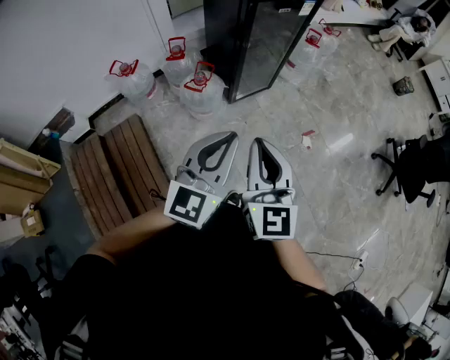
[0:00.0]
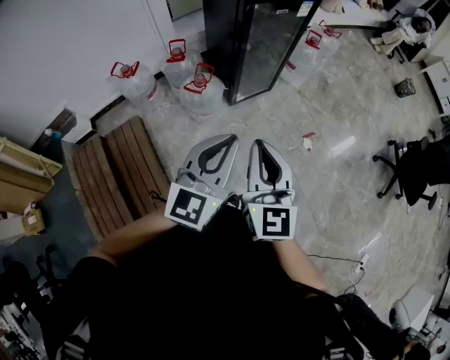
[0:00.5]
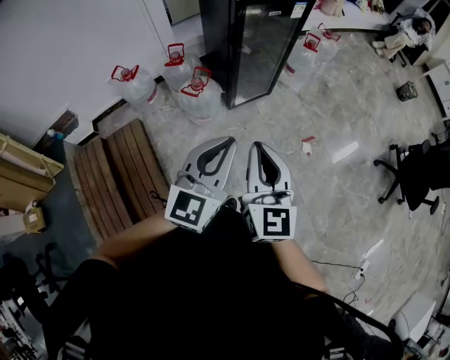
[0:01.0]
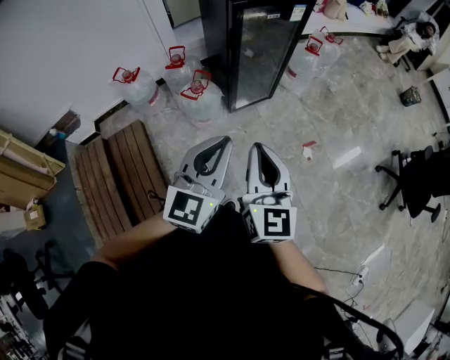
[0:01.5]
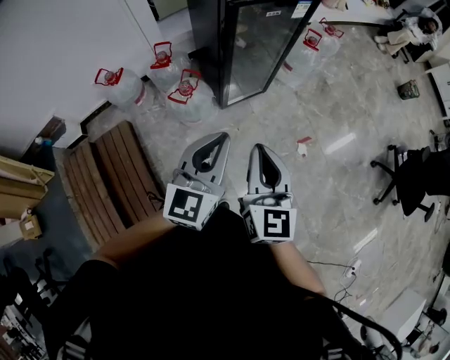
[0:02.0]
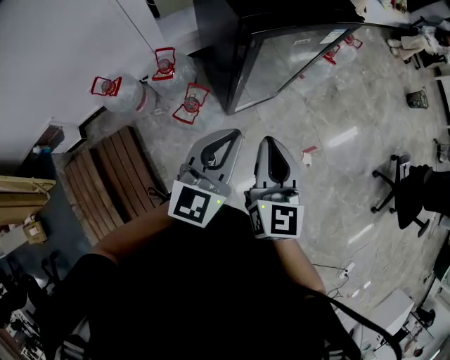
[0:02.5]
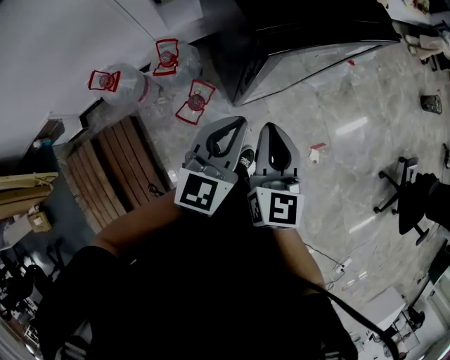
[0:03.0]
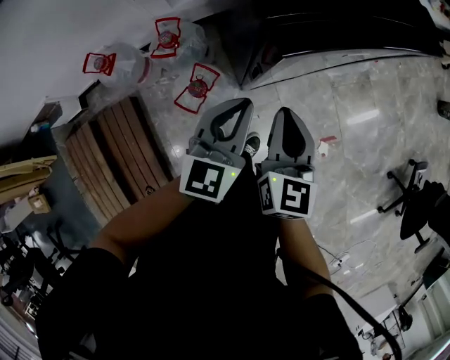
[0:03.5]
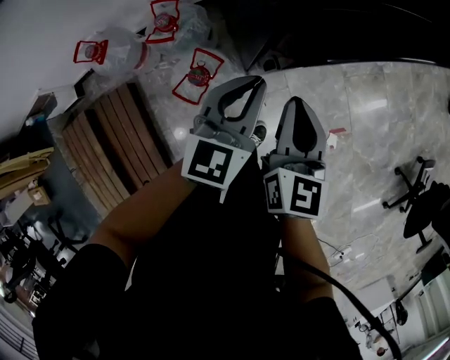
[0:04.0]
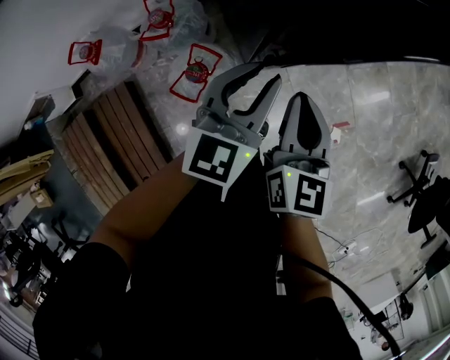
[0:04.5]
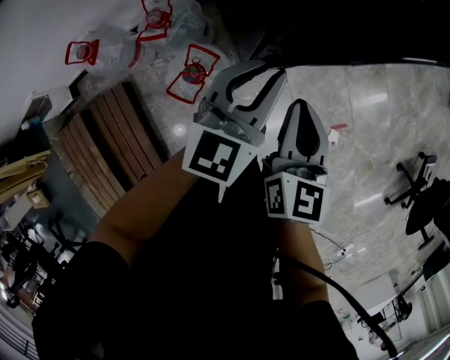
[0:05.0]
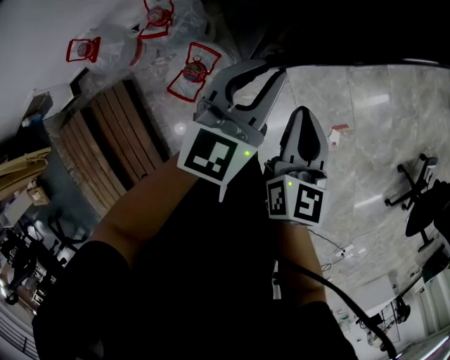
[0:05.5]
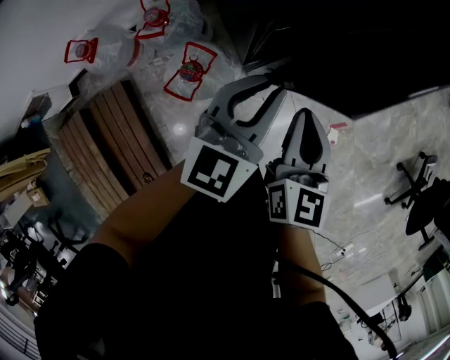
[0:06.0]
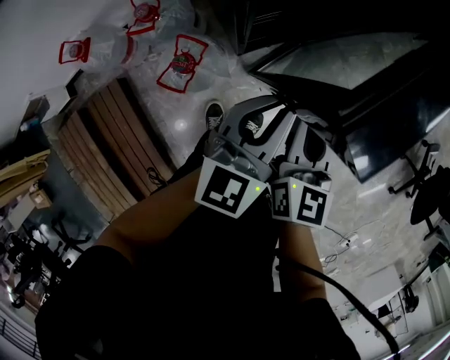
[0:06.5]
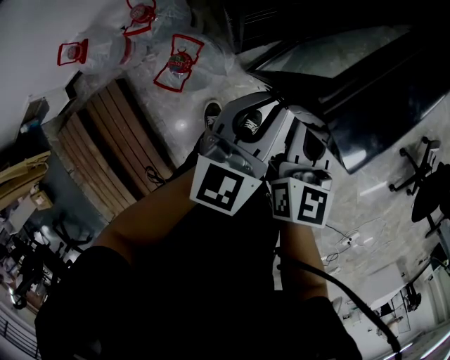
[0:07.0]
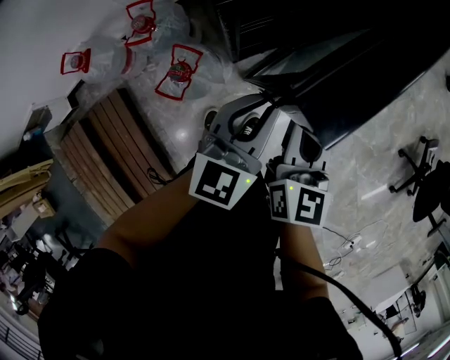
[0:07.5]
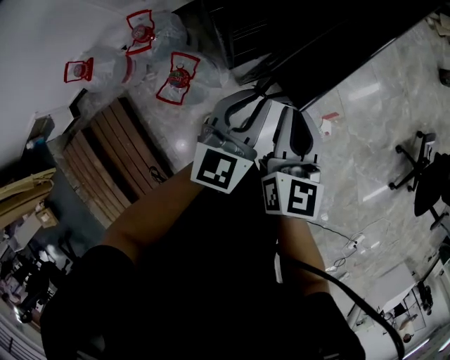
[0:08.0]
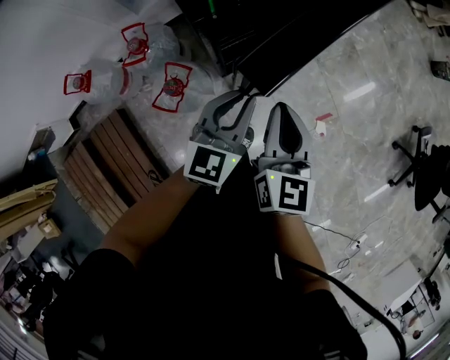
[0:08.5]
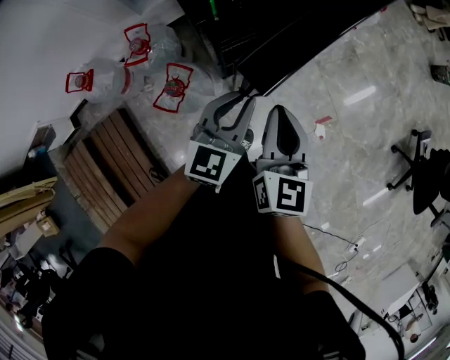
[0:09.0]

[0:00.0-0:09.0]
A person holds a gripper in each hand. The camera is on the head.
0:00.0 to 0:02.0: The left gripper heads forward, covering about 15 cm; the right gripper heads forward and to the right, covering roughly 15 cm.
0:02.0 to 0:04.5: The grippers both shift forward and downward by some 40 cm. The left gripper opens.
0:04.5 to 0:07.0: The left gripper travels to the right and backward by about 10 cm; the right gripper moves to the right, about 10 cm.
0:07.0 to 0:09.0: The right gripper heads upward, covering approximately 5 cm.

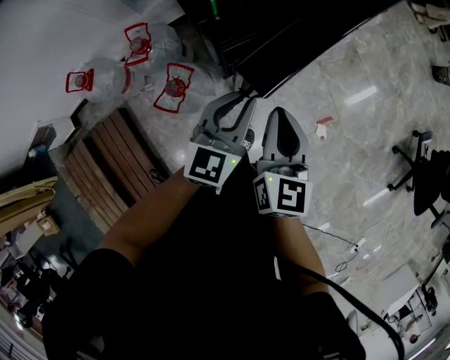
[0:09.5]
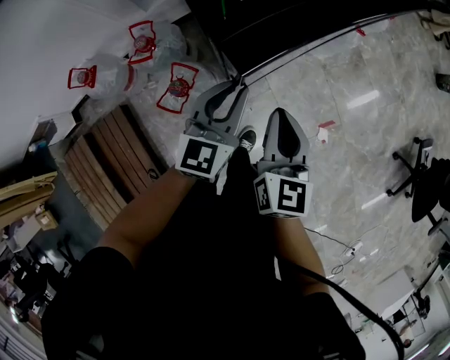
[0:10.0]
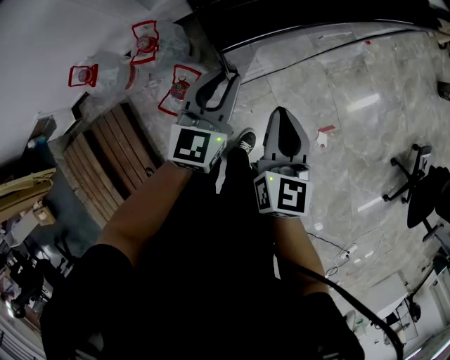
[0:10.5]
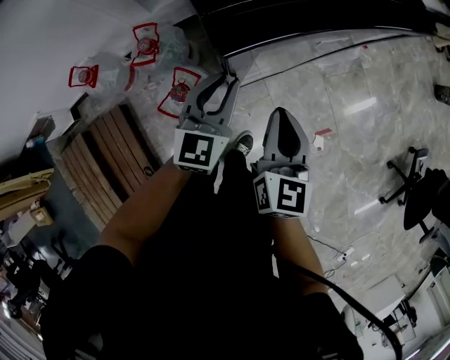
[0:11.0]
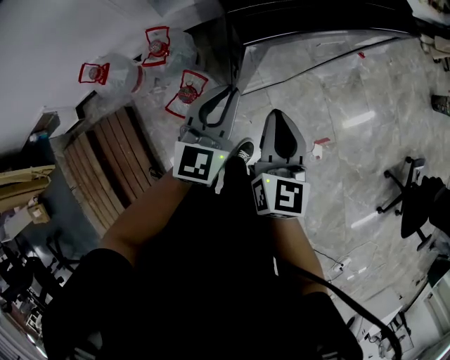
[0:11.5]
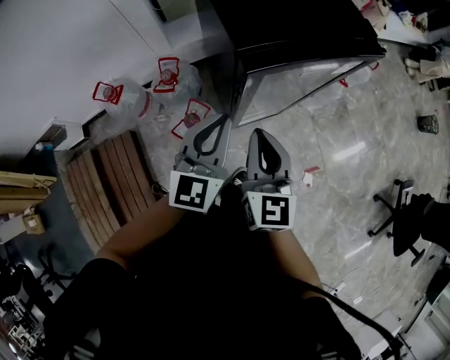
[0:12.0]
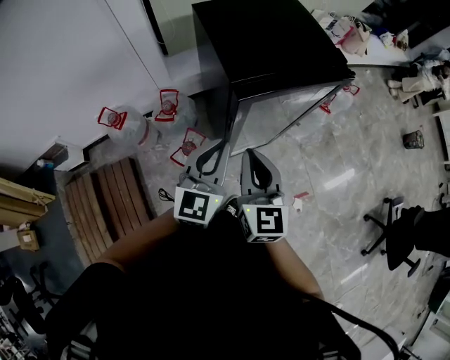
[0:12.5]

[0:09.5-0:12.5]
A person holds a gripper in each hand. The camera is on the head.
0:09.5 to 0:11.0: The left gripper is displaced to the left and forward by roughly 10 cm; the right gripper changes place by about 5 cm.
0:11.0 to 0:12.5: The two grippers go roughly 20 cm upward and backward.

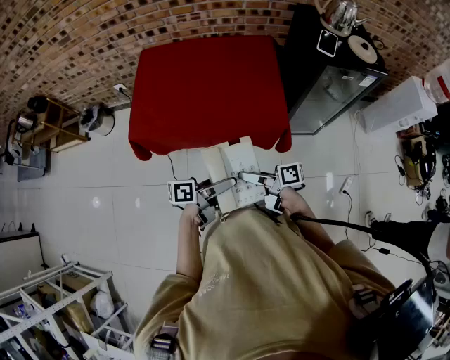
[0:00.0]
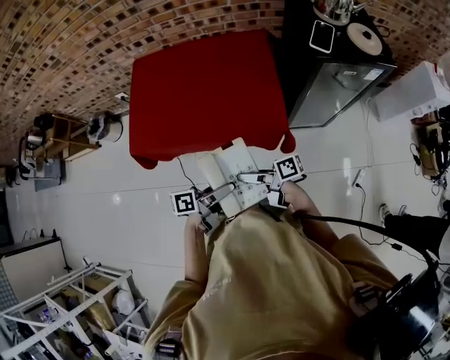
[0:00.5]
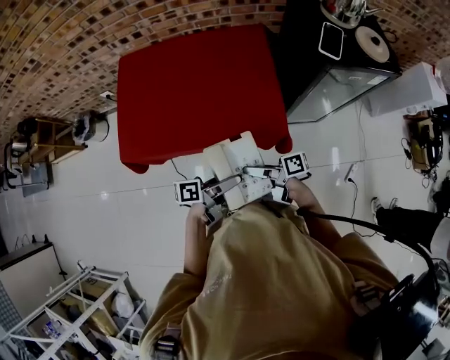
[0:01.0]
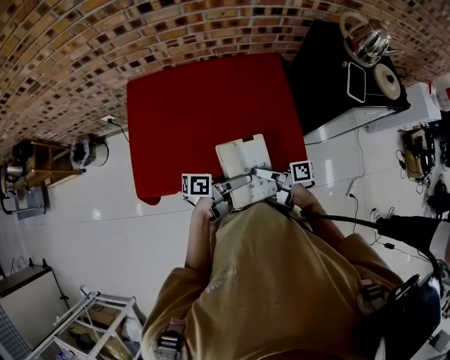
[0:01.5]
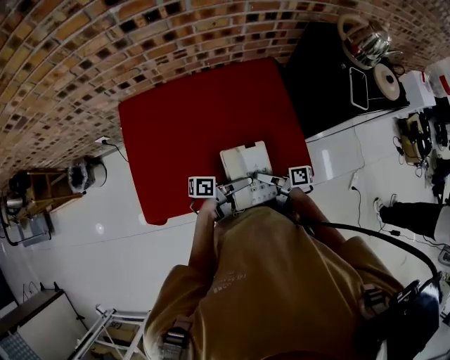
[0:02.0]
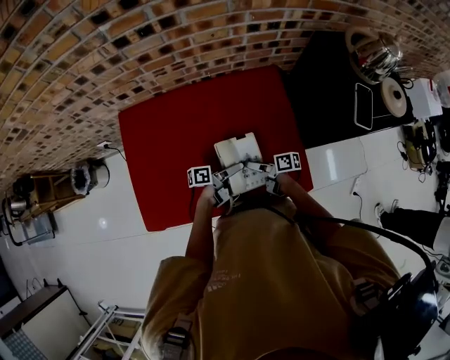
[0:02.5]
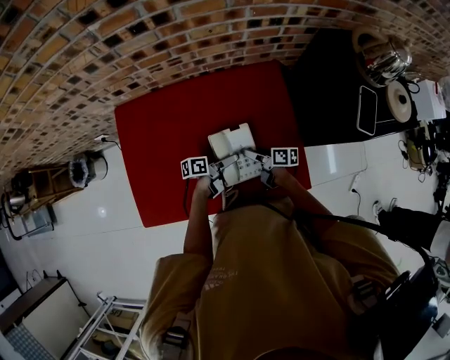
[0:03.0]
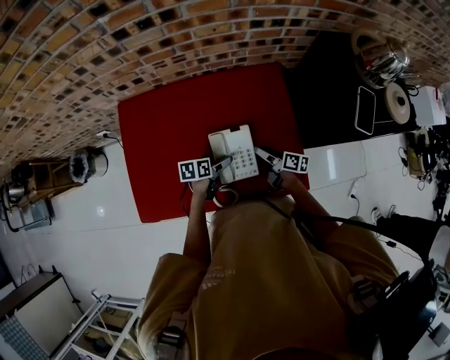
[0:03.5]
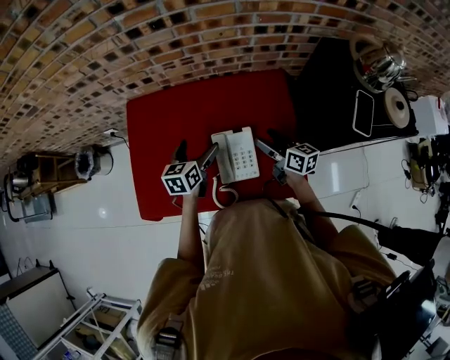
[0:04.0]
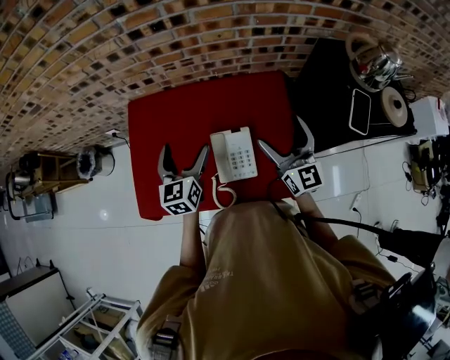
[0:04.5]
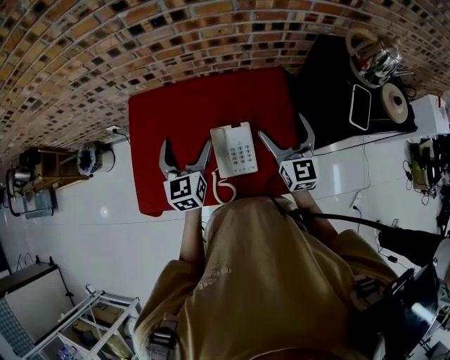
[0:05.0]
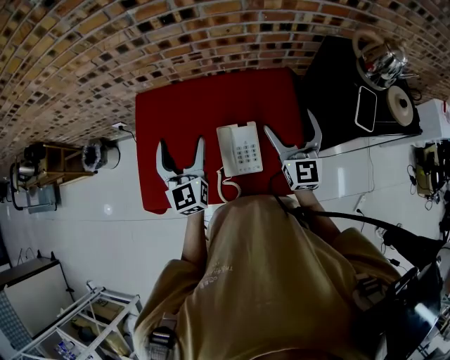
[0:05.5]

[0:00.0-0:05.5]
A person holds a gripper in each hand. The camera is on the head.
0:00.0 to 0:02.0: The left gripper moves up and down over approximately 10 cm, changing direction 2 times, and turns by roughly 30 degrees; the right gripper ends up roughly 35 cm from where it was.
0:02.0 to 0:03.5: The right gripper moves roughly 20 cm, and turns by roughly 20 degrees. Meanwhile the left gripper changes place by some 20 cm, and points its fingers about 40 degrees further downward.
0:03.5 to 0:05.5: The grippers both shift upward by some 40 cm. The left gripper tilts its fingers some 40 degrees upward, while the right gripper twists roughly 80 degrees counterclockwise, seen from behind.

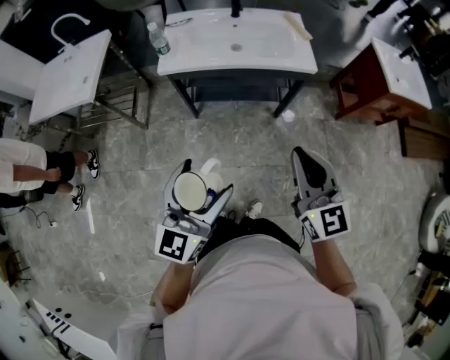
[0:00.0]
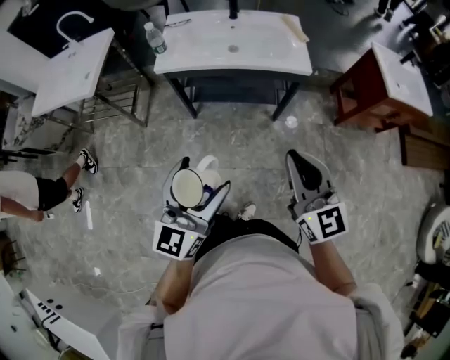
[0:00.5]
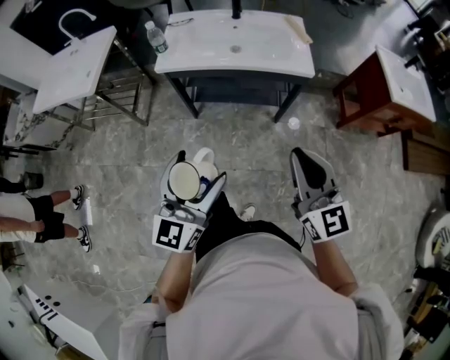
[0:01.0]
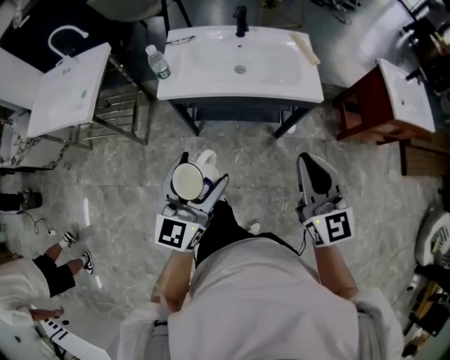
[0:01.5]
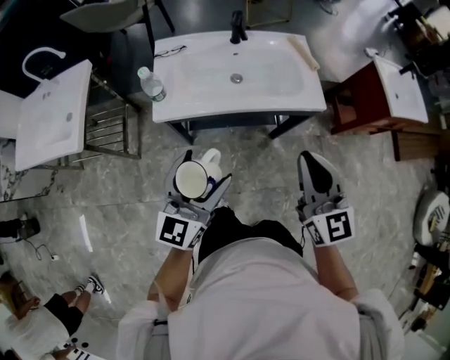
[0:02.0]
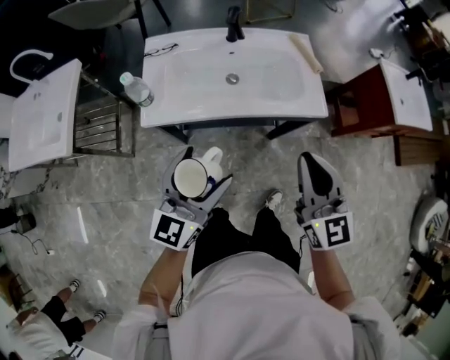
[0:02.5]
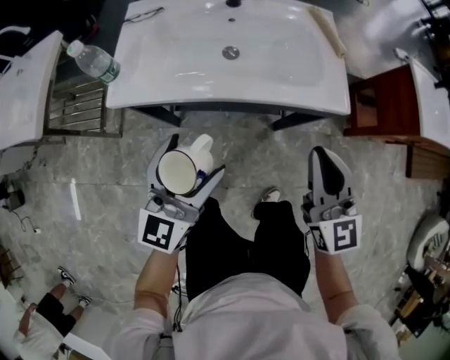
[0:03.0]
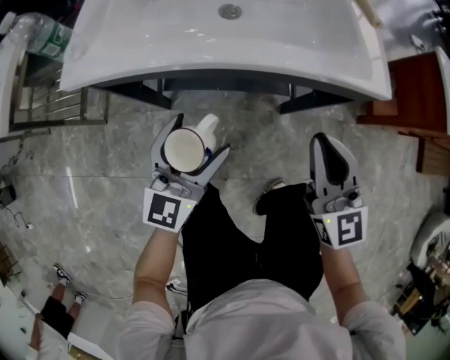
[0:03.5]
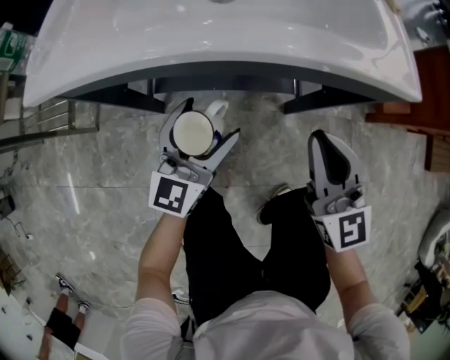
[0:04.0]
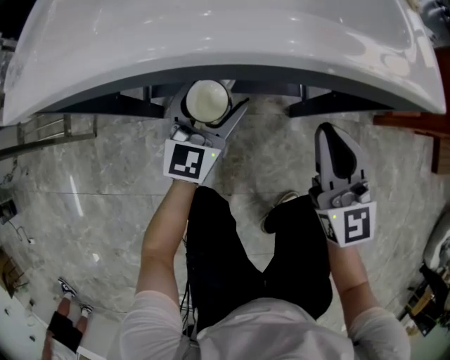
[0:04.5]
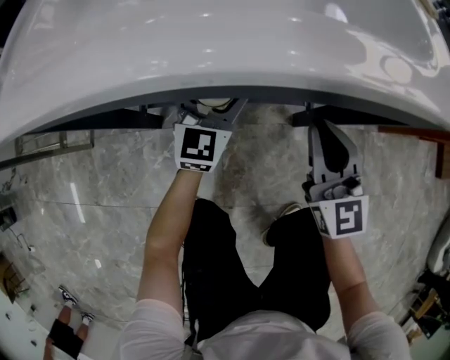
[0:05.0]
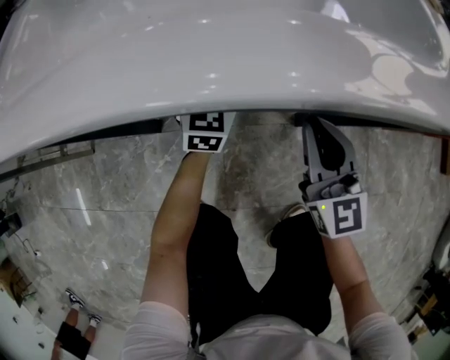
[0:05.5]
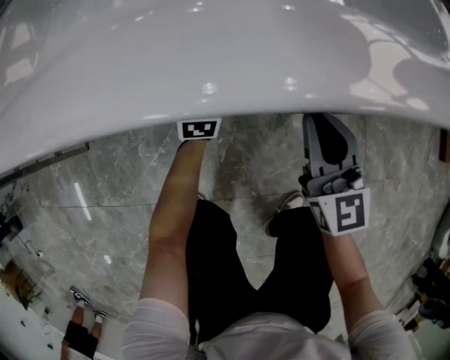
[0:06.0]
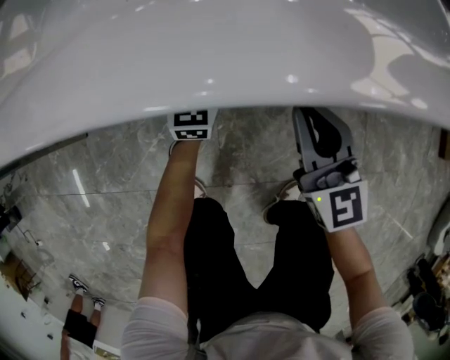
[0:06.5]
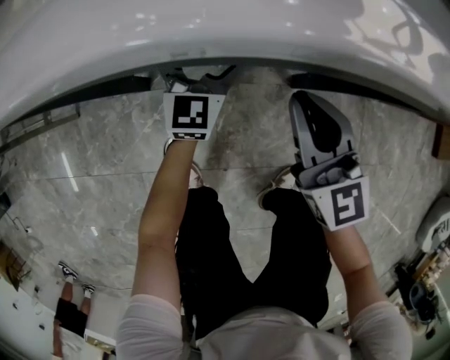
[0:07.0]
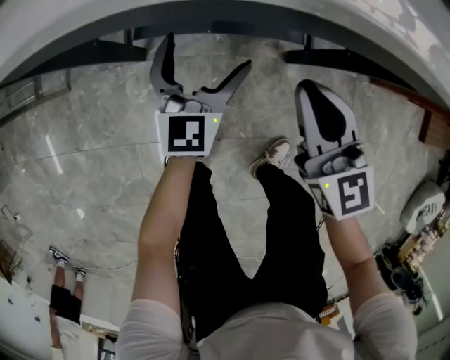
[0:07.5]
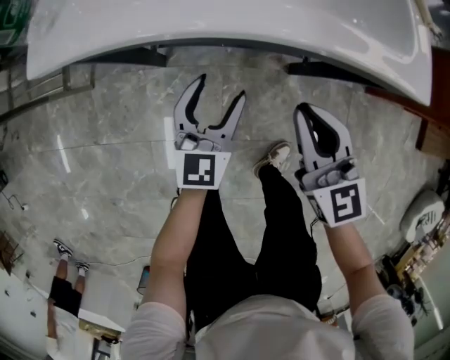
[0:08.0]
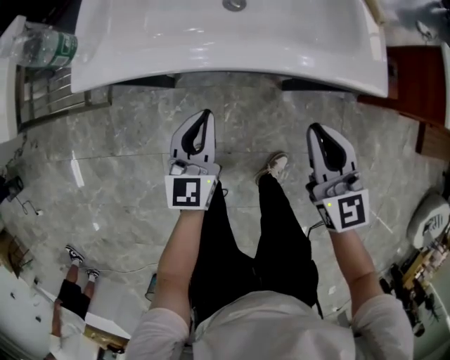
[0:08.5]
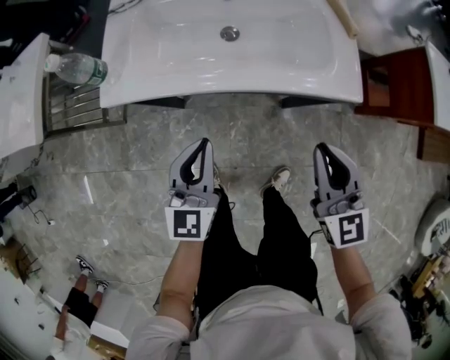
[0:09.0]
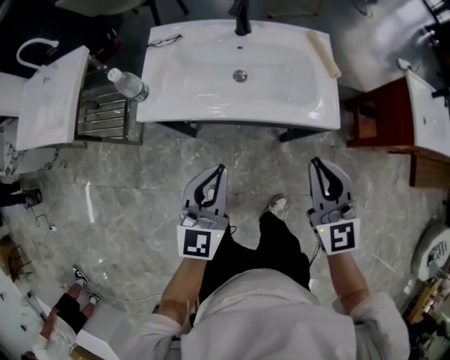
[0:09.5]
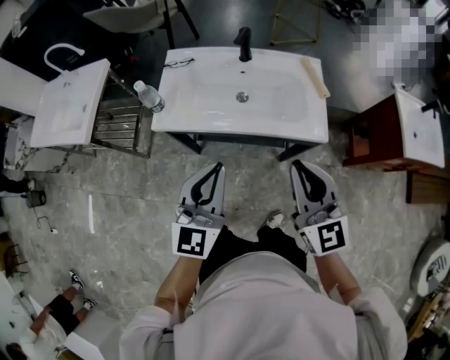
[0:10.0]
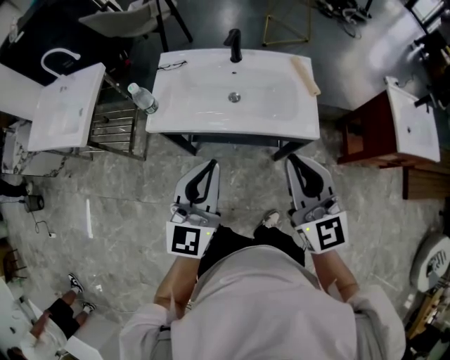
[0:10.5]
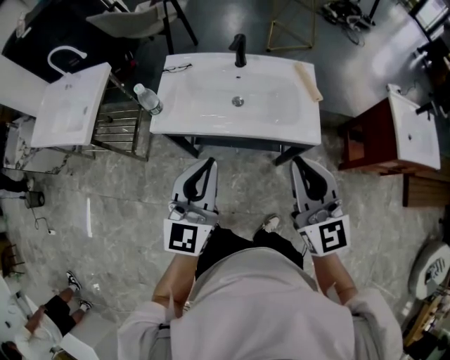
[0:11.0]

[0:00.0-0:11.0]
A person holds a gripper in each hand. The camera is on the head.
0:00.0 to 0:02.0: The grippers both shift forward by about 20 cm.
0:02.0 to 0:03.5: The two grippers go roughly 30 cm downward.
0:03.5 to 0:05.5: The left gripper shifts about 35 cm forward and downward. Meanwhile the right gripper heads downward and forward, covering roughly 25 cm.
0:05.5 to 0:07.5: The right gripper goes some 10 cm to the left; the left gripper shifts approximately 15 cm backward and to the left.
0:07.5 to 0:09.0: The right gripper shifts some 25 cm upward; the left gripper heads upward and backward, covering some 30 cm, and closes its fingers.
0:09.0 to 0:11.0: Both grippers move upward, some 25 cm.
